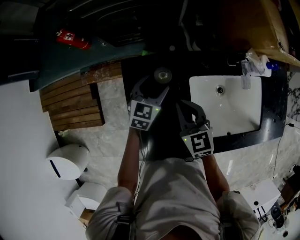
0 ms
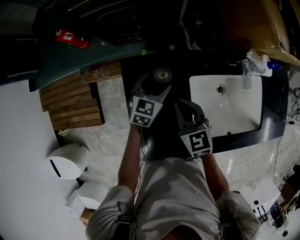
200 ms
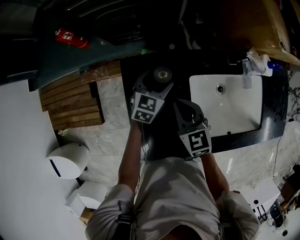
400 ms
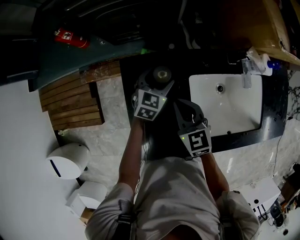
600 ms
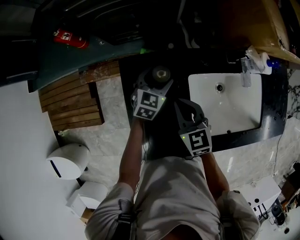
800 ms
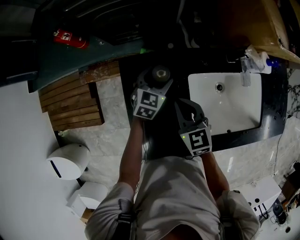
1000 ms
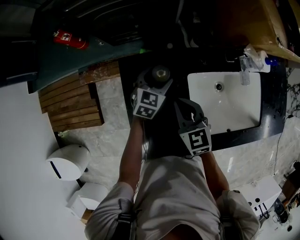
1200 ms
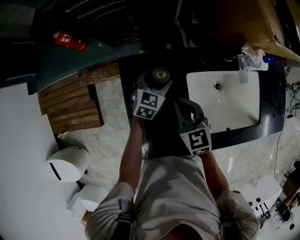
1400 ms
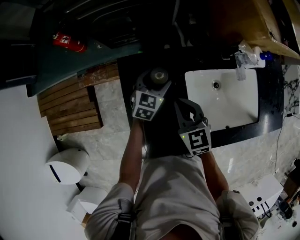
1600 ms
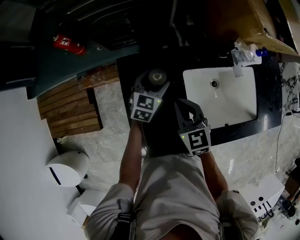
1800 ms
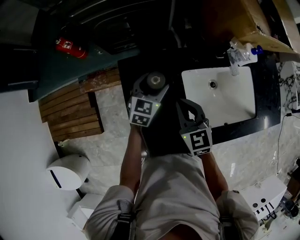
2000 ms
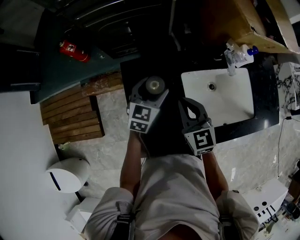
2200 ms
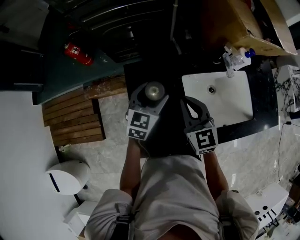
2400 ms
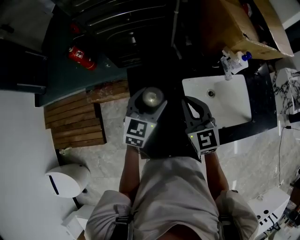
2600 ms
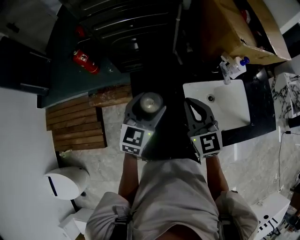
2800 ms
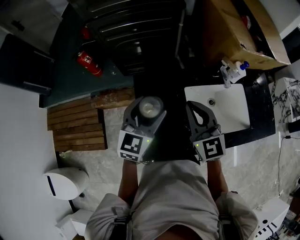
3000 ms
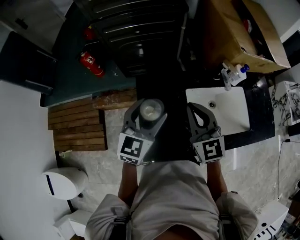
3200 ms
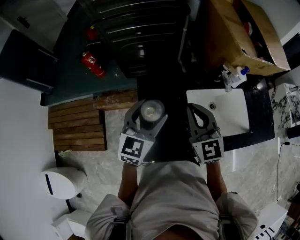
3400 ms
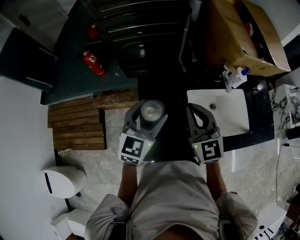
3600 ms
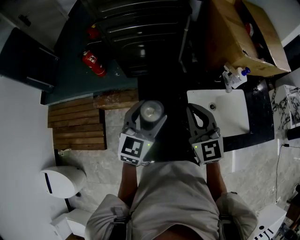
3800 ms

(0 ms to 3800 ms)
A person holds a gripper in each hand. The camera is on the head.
0 ms - 1200 ms: The grippers make only small movements.
1200 ms - 2600 ms: The right gripper is displaced upward by about 10 cm, while the left gripper goes approximately 20 cm upward and backward.
2600 ms - 3800 ms: The left gripper heads upward and backward, covering some 10 cm, while the right gripper shifts about 10 cm upward.

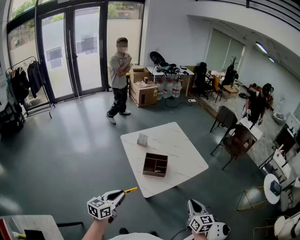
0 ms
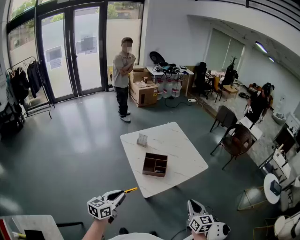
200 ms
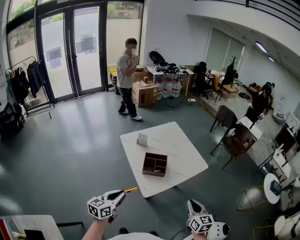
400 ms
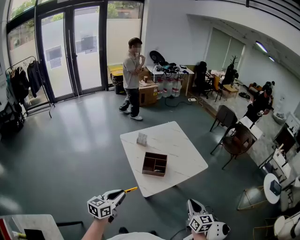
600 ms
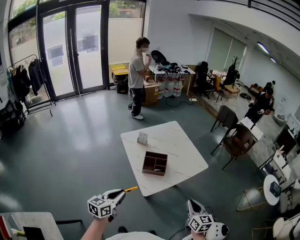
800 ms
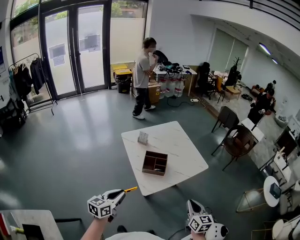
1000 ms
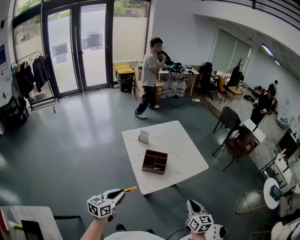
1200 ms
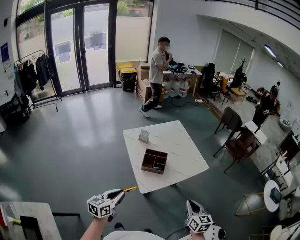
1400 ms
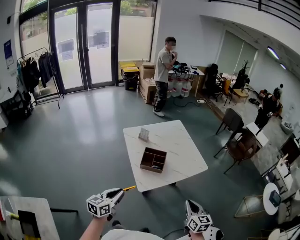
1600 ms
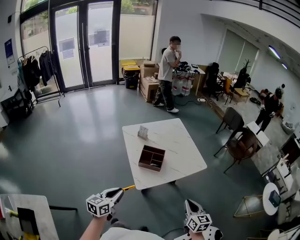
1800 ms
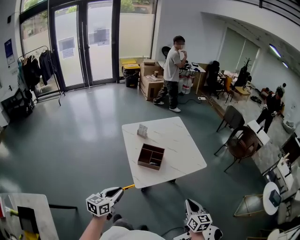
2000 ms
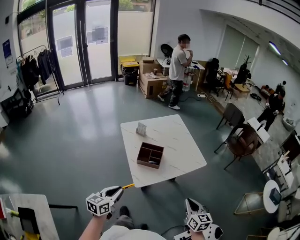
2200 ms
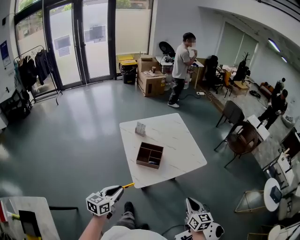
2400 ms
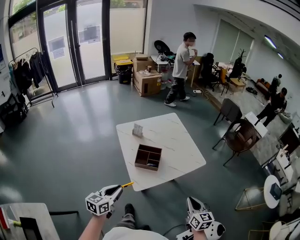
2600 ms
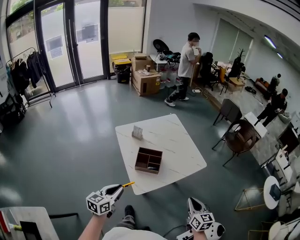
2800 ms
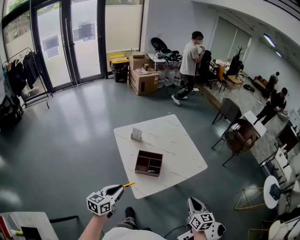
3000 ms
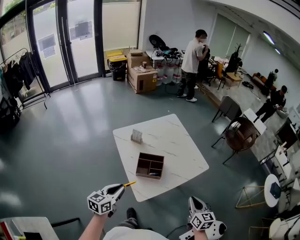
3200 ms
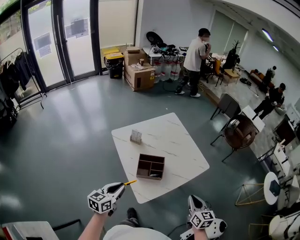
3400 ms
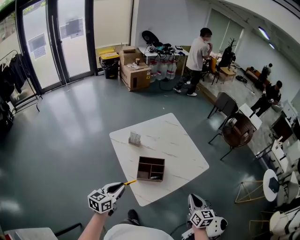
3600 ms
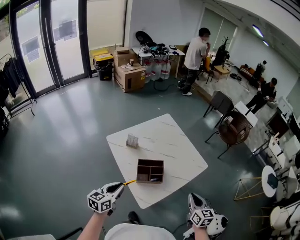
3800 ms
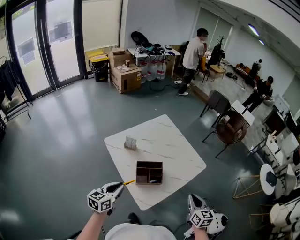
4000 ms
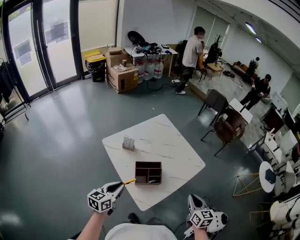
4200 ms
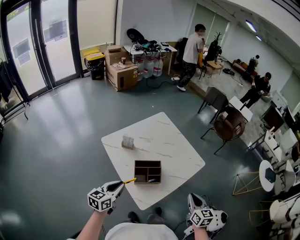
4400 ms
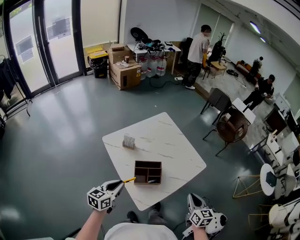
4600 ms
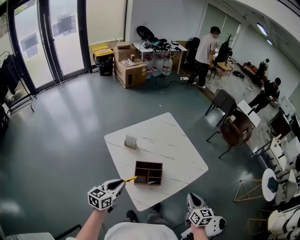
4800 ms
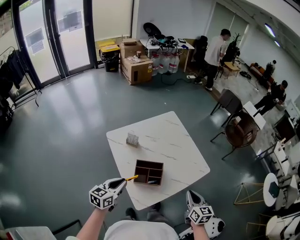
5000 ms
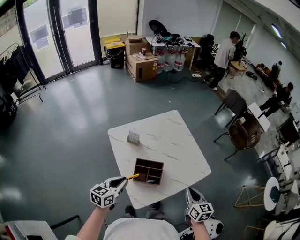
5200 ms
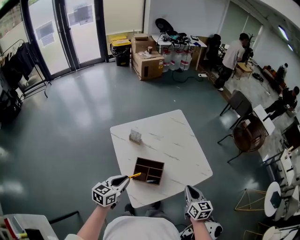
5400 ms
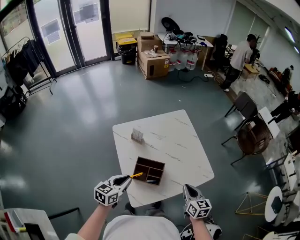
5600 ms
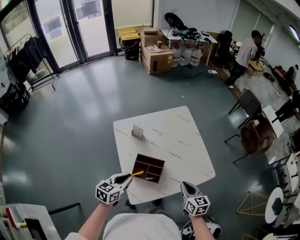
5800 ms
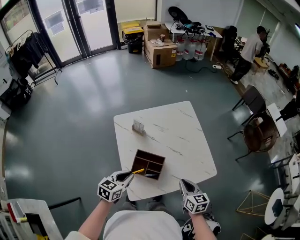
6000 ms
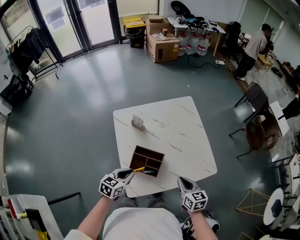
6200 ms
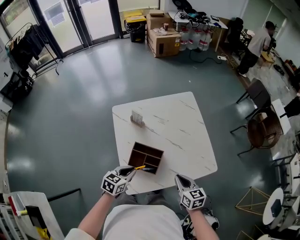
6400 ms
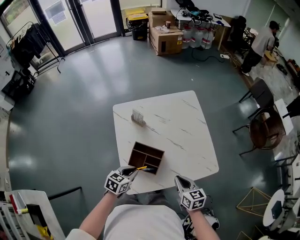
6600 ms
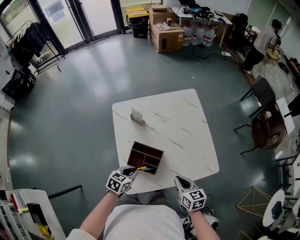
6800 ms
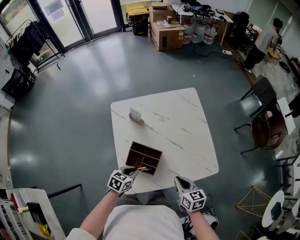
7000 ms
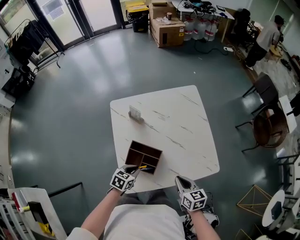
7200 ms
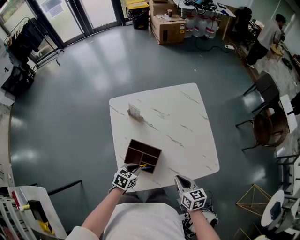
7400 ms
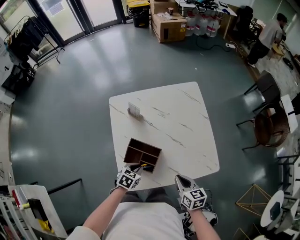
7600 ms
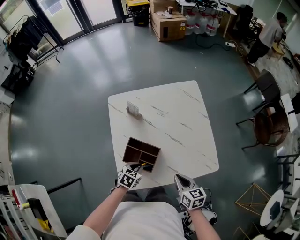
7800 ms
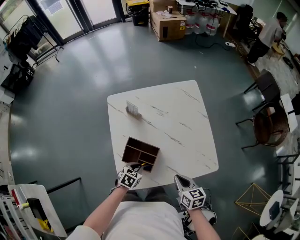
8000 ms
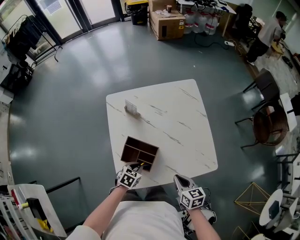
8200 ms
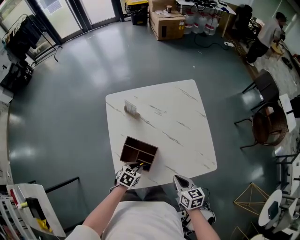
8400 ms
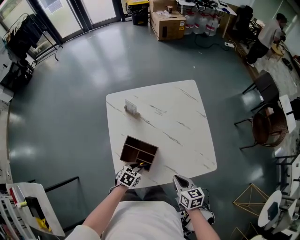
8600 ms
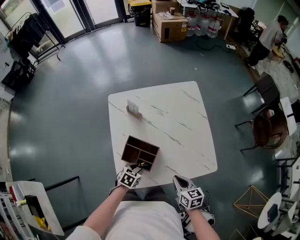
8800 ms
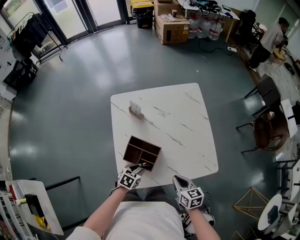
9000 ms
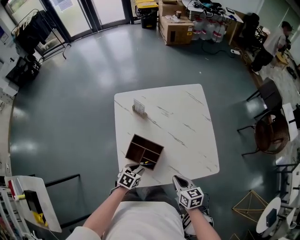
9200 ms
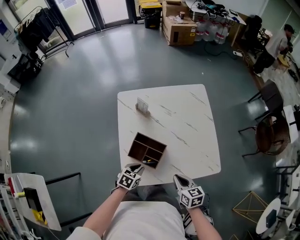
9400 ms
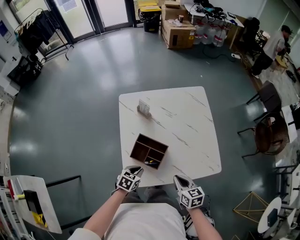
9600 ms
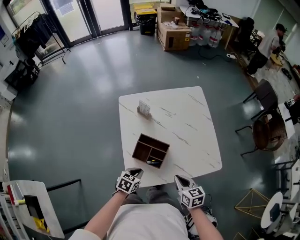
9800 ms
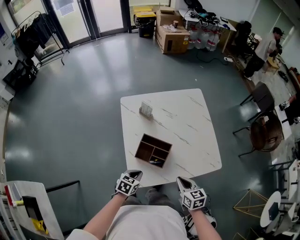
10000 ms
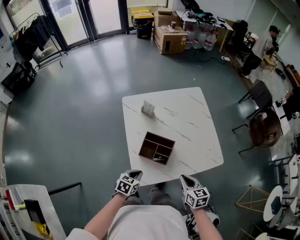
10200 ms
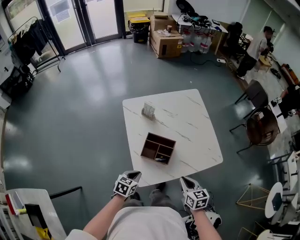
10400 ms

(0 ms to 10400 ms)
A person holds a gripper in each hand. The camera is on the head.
0 ms - 1400 ms: The grippers stay close to where they were, moving slightly.
1400 ms - 3000 ms: Both grippers travel together forward, about 10 cm.
3000 ms - 4400 ms: The right gripper moves to the left and forward, roughly 10 cm. The left gripper goes about 15 cm forward and to the left.
4400 ms - 6000 ms: The right gripper shifts some 20 cm forward and downward, and turns by roughly 30 degrees. Meanwhile the left gripper goes roughly 15 cm to the right, forward and downward.
6000 ms - 7400 ms: The right gripper moves downward, some 5 cm. The left gripper is displaced downward and to the right by some 20 cm, and swivels about 20 degrees.
7400 ms - 9000 ms: The left gripper opens up.
9000 ms - 10400 ms: The right gripper travels backward, to the left and upward by roughly 15 cm. Meanwhile the left gripper moves to the left, backward and upward, roughly 15 cm, and closes its fingers.

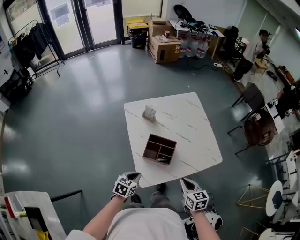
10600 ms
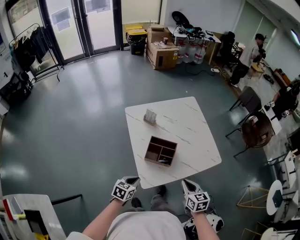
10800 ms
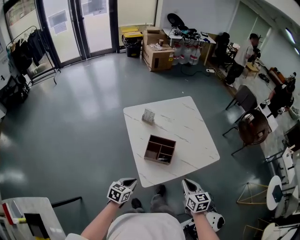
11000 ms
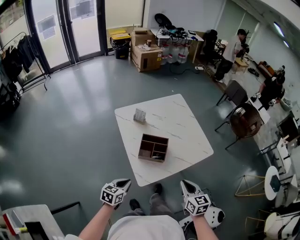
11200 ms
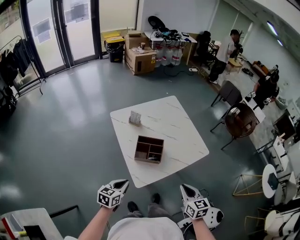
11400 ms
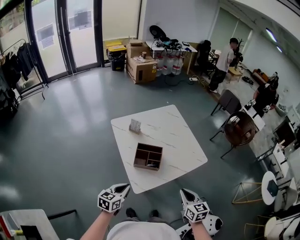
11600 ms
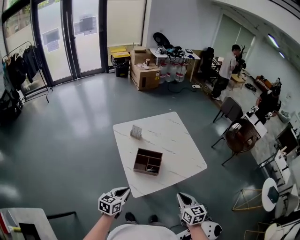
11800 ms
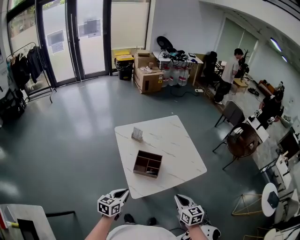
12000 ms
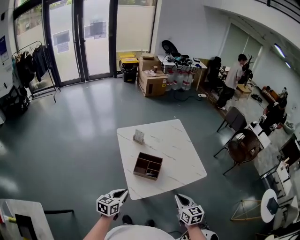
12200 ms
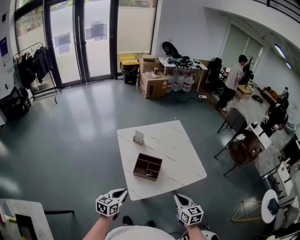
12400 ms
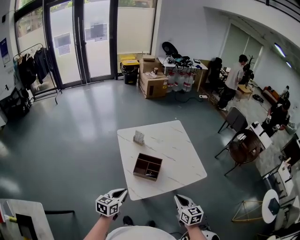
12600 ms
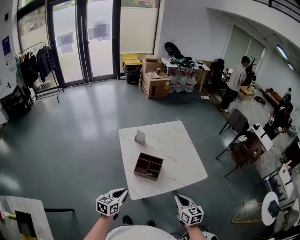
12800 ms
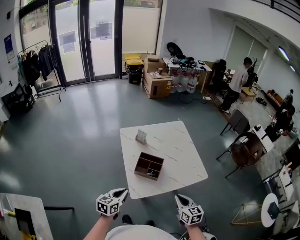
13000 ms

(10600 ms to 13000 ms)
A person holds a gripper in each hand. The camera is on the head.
10600 ms - 11800 ms: The left gripper goes approximately 15 cm upward and backward, while the right gripper moves backward and upward, roughly 10 cm.
11800 ms - 13000 ms: There are only small adjustments of the grippers.

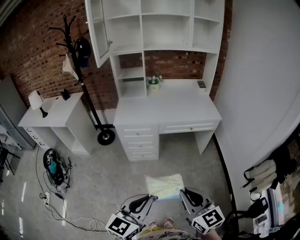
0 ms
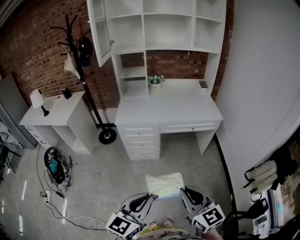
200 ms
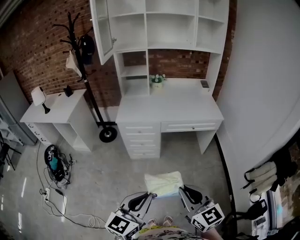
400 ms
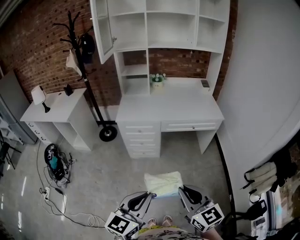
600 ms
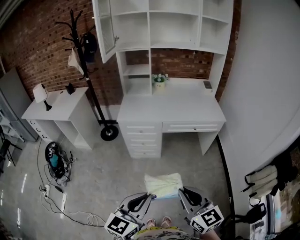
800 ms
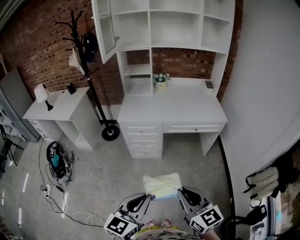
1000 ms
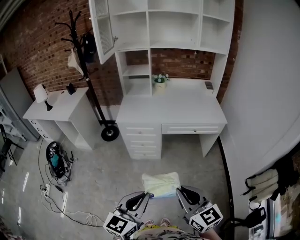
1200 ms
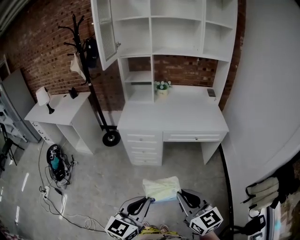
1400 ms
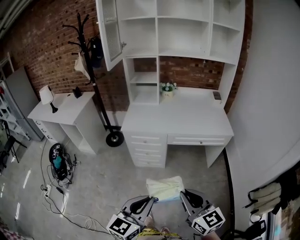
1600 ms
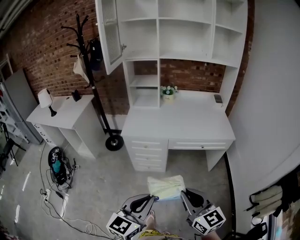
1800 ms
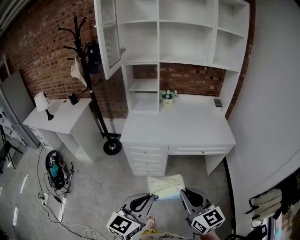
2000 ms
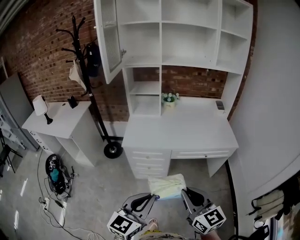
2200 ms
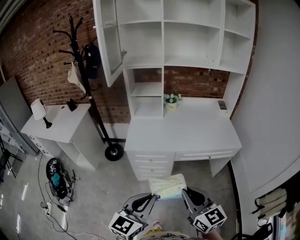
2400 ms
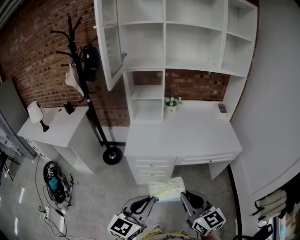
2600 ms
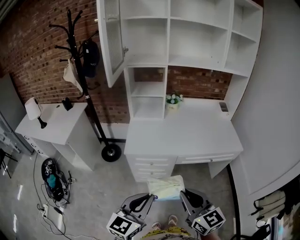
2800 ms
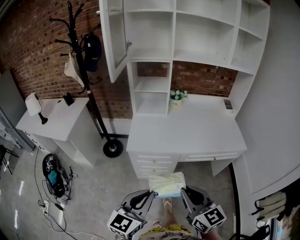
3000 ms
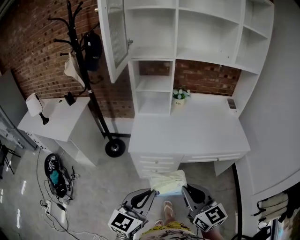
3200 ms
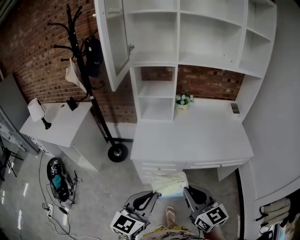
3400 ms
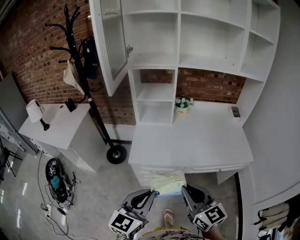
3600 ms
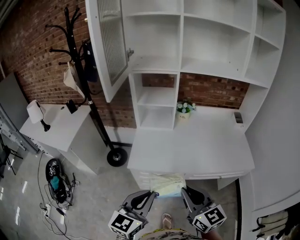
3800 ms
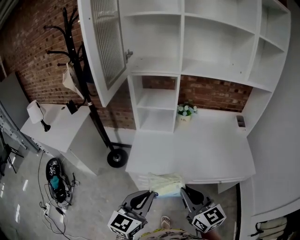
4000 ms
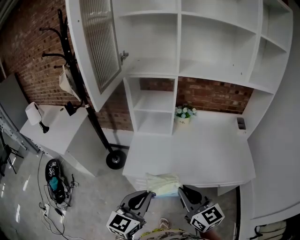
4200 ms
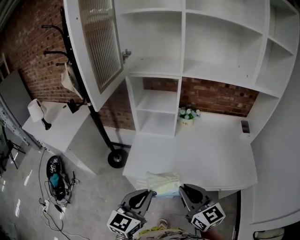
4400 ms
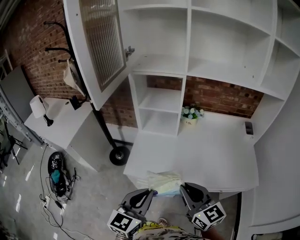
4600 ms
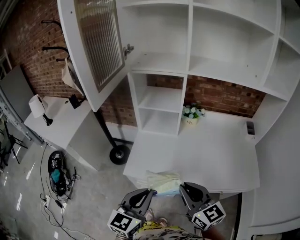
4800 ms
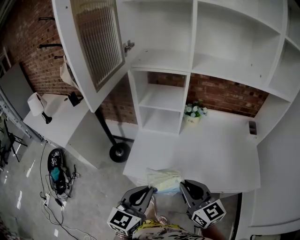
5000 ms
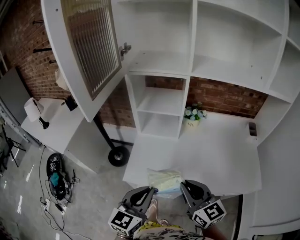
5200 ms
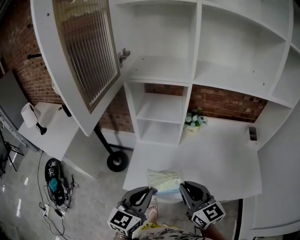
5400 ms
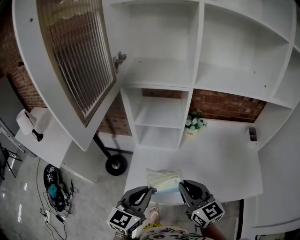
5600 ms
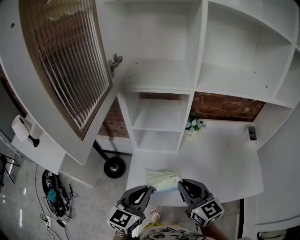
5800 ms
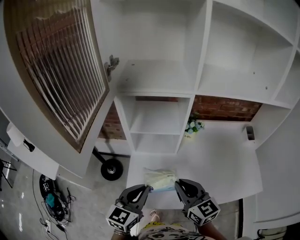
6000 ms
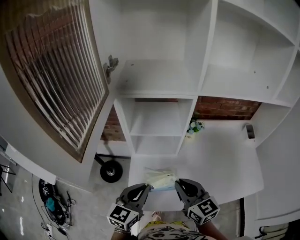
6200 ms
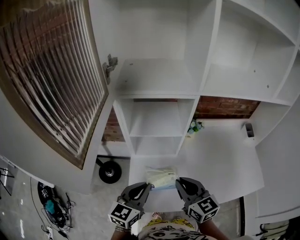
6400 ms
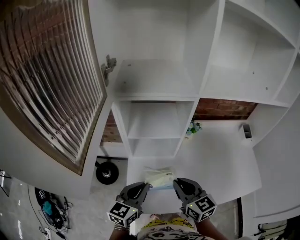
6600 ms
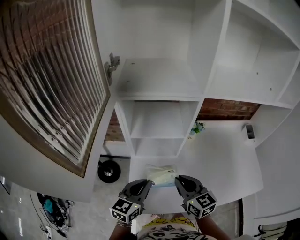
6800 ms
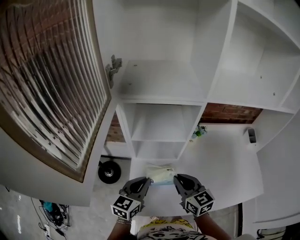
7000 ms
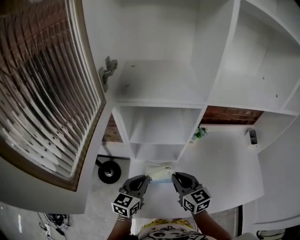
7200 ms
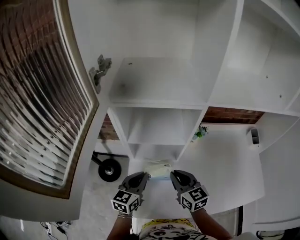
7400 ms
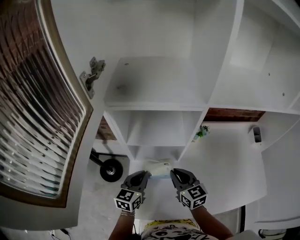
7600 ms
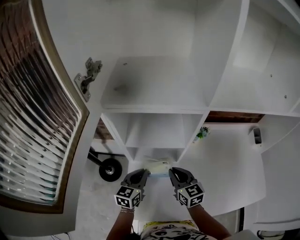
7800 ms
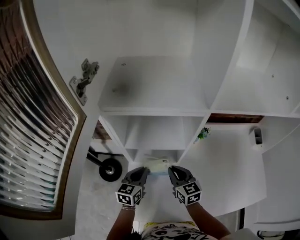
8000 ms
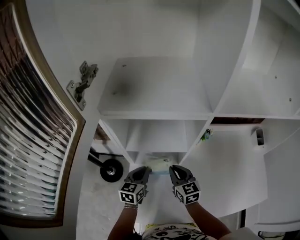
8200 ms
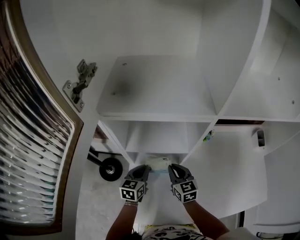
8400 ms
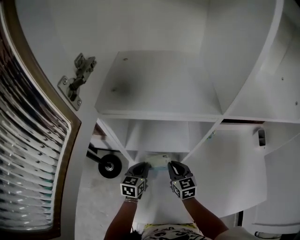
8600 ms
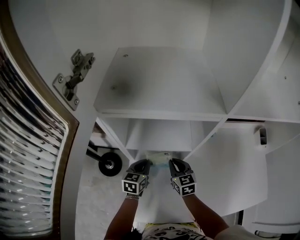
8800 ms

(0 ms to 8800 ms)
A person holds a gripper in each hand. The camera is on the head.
0 ms - 1400 ms: The right gripper is displaced forward by about 5 cm. Meanwhile the left gripper changes place by approximately 5 cm.
1400 ms - 3000 ms: The grippers both shift forward and to the left by roughly 30 cm.
3000 ms - 4400 ms: Both grippers travel together forward, roughly 20 cm.
4400 ms - 5800 ms: Both grippers travel together forward, some 20 cm.
5800 ms - 7400 ms: The two grippers go approximately 20 cm forward and downward.
7400 ms - 8800 ms: Both grippers move downward and forward, some 15 cm.
